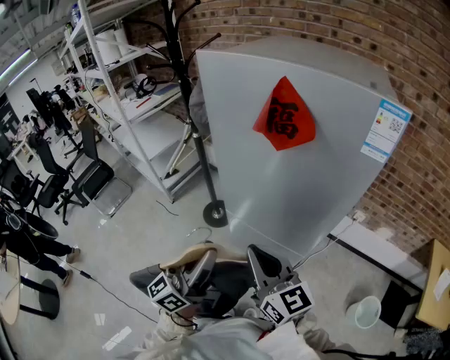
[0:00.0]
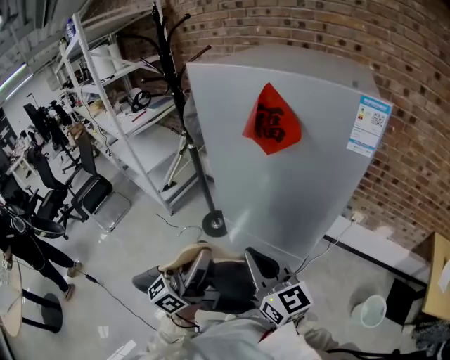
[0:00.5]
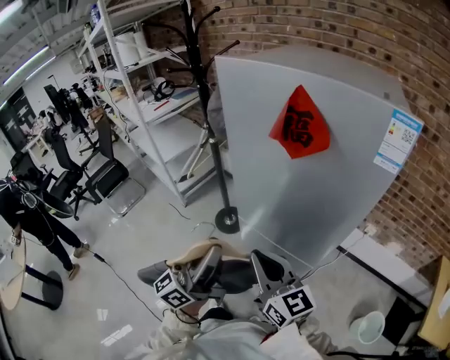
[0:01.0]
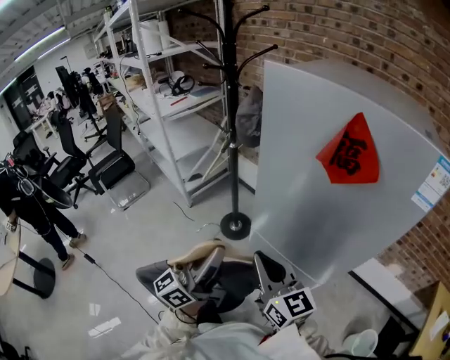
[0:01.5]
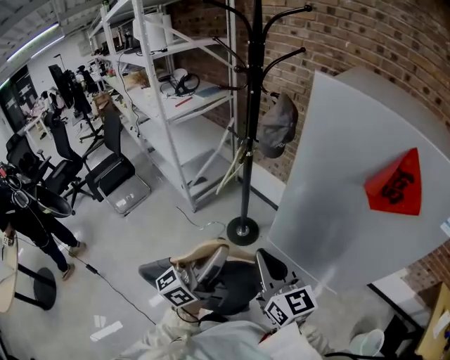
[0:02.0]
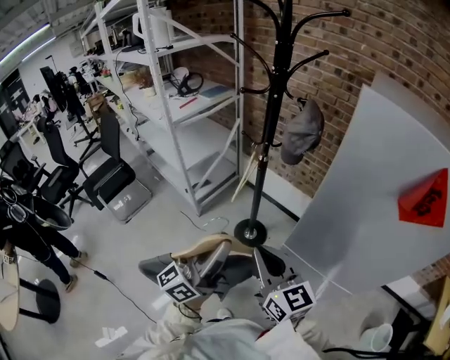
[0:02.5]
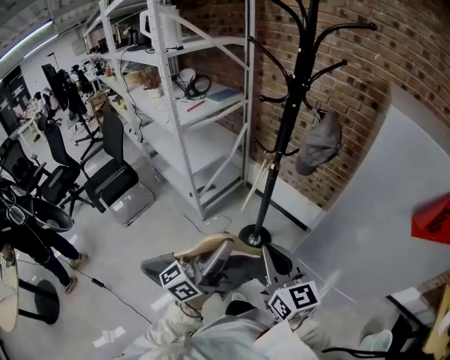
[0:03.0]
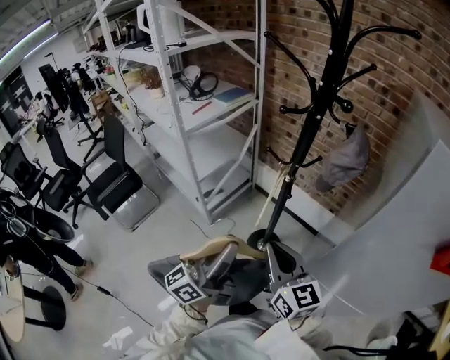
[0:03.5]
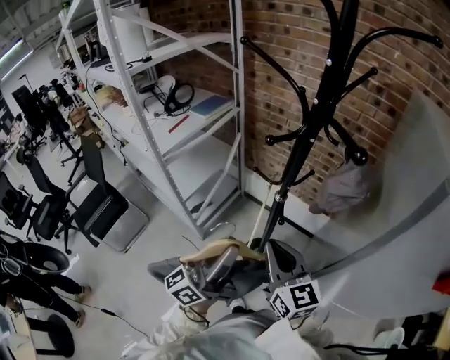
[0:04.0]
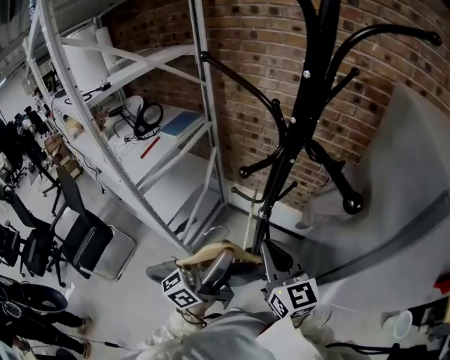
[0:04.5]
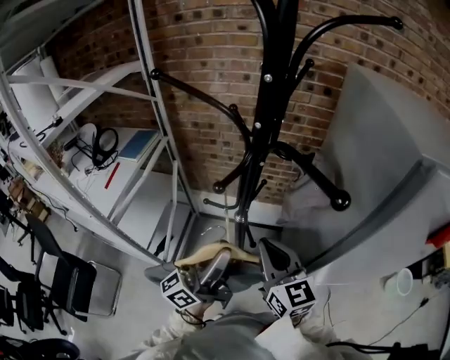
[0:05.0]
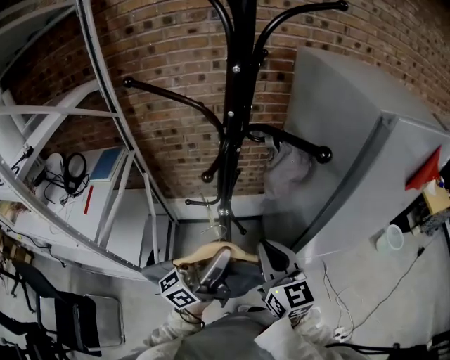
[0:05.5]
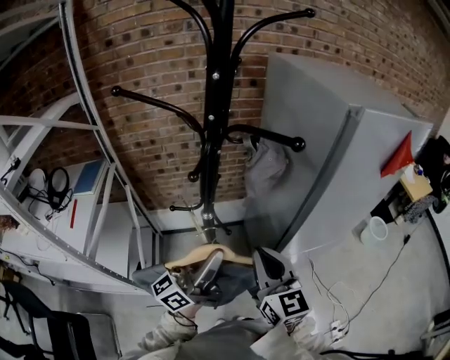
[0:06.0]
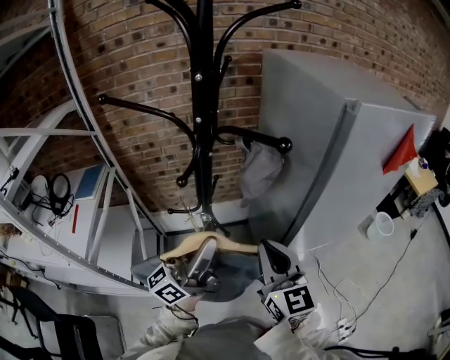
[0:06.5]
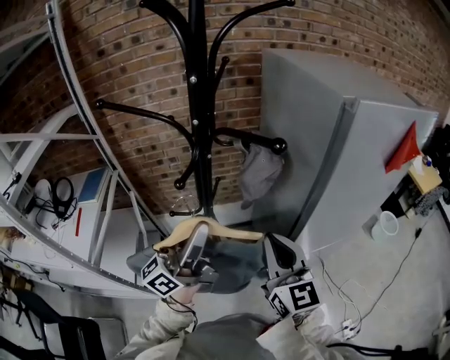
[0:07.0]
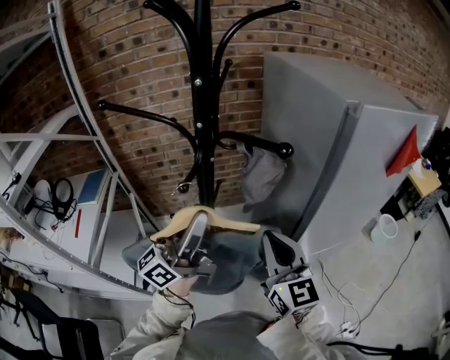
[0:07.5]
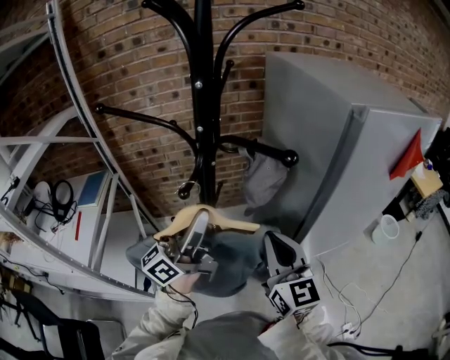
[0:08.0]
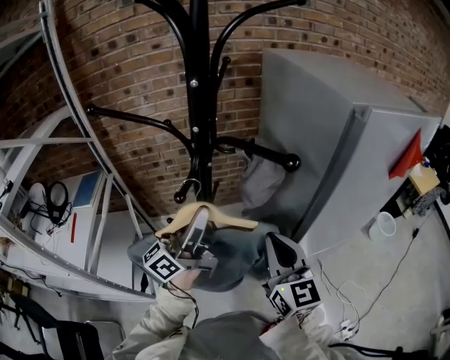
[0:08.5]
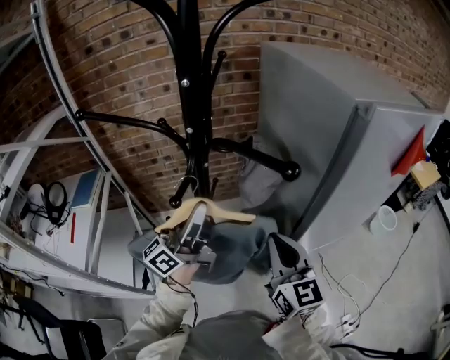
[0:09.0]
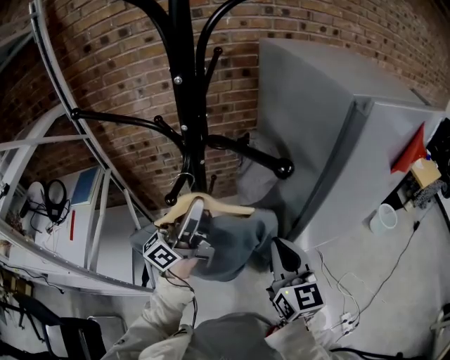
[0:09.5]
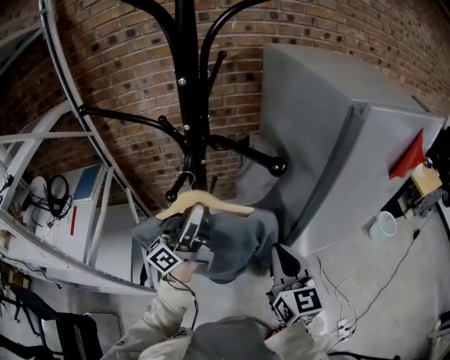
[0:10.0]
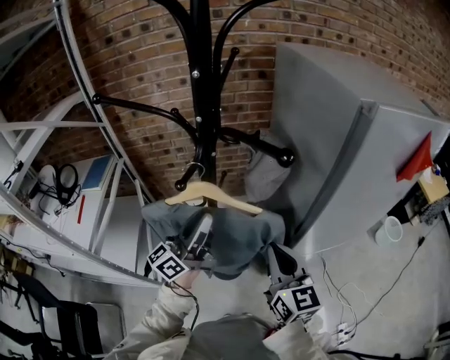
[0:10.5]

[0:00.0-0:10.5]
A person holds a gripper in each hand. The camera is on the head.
0:00.0 to 0:02.0: Both grippers travel together to the left and forward, roughly 25 cm.
0:02.0 to 0:04.0: The two grippers go roughly 40 cm forward and to the left.
0:04.0 to 0:06.5: The left gripper moves some 10 cm, and rotates roughly 40 degrees. The right gripper shifts by roughly 5 cm, and turns by approximately 50 degrees.
0:06.5 to 0:08.5: The left gripper goes roughly 10 cm forward.
0:08.5 to 0:10.5: The right gripper ends up about 5 cm from where it was. Meanwhile the left gripper moves downward, some 5 cm.

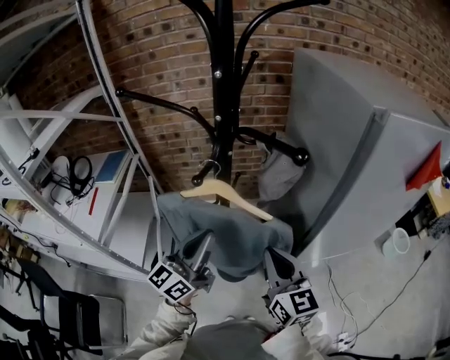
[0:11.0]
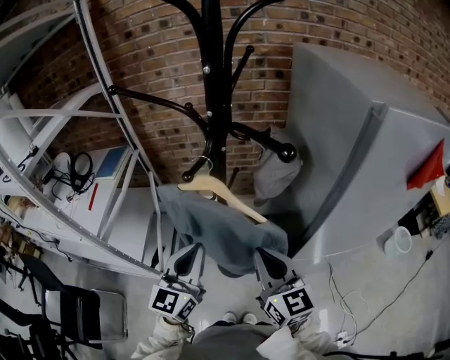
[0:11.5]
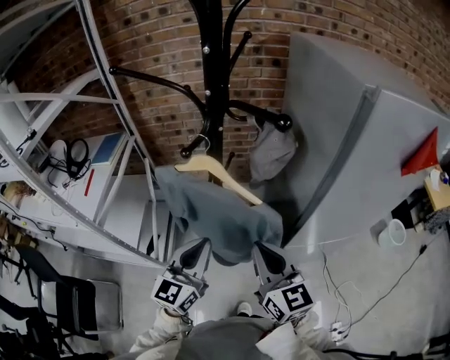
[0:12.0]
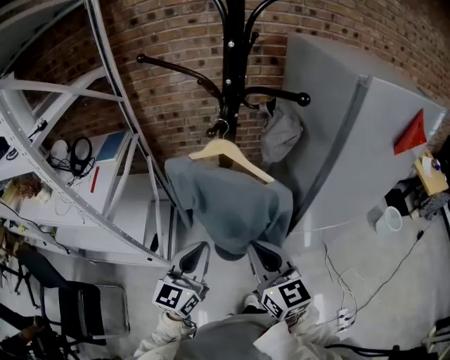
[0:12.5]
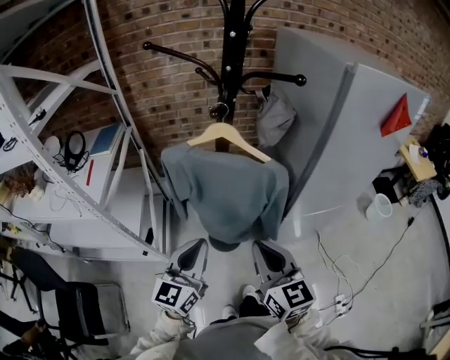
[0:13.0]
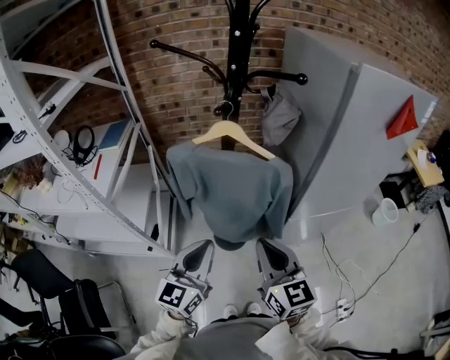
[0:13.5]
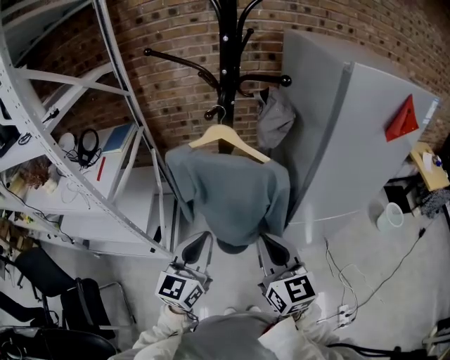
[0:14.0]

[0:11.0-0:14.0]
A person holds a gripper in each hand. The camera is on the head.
0:11.0 to 0:12.5: The left gripper shifts roughly 15 cm backward and downward, and turns by some 20 degrees. The right gripper shifts about 15 cm backward and to the left.
0:12.5 to 0:14.0: The left gripper shifts by roughly 5 cm. The right gripper shifts by roughly 5 cm.

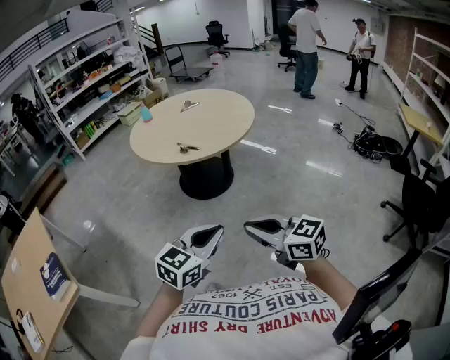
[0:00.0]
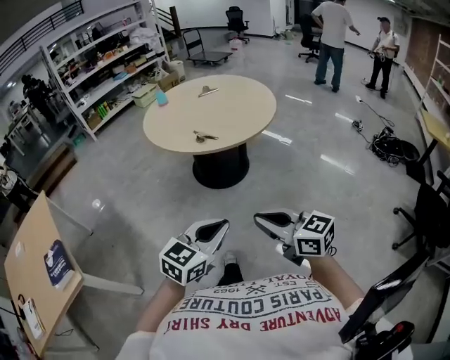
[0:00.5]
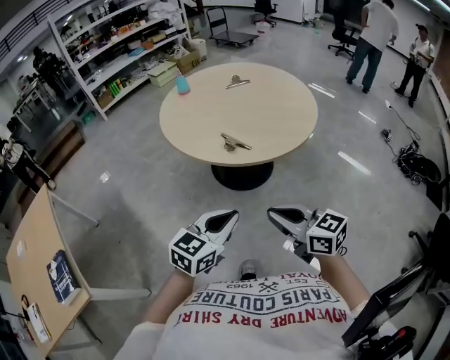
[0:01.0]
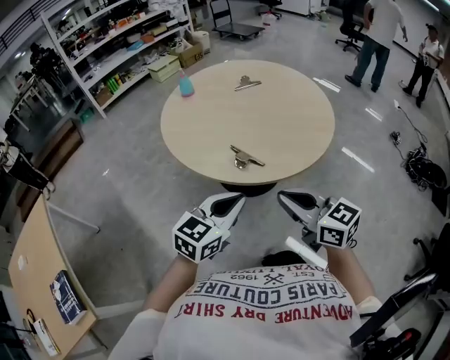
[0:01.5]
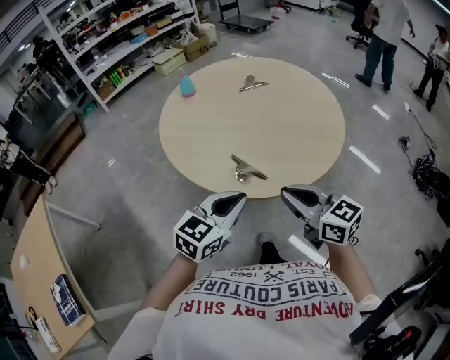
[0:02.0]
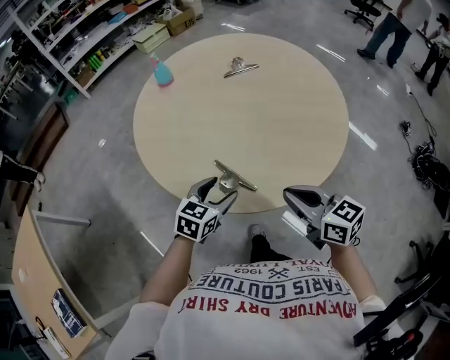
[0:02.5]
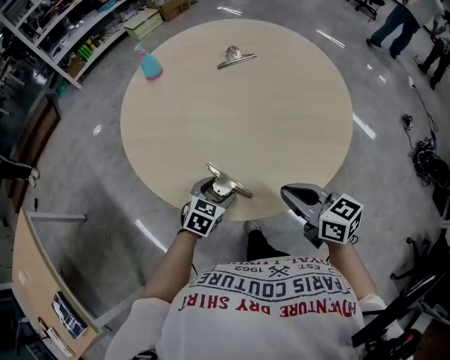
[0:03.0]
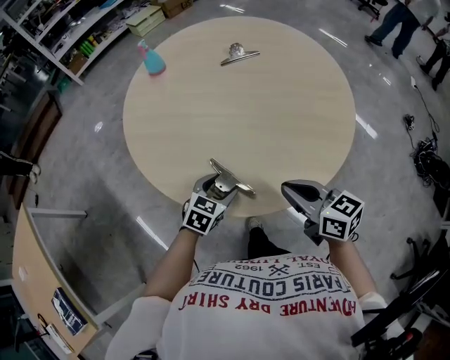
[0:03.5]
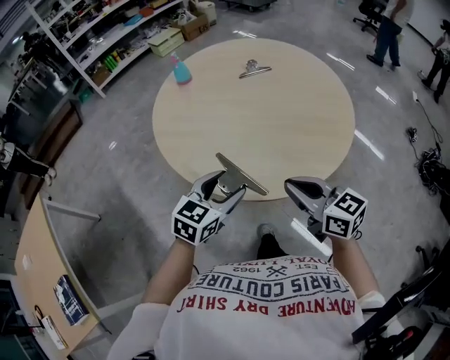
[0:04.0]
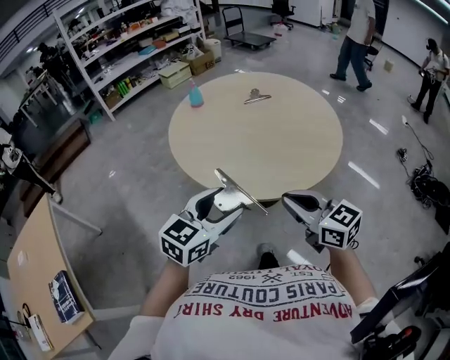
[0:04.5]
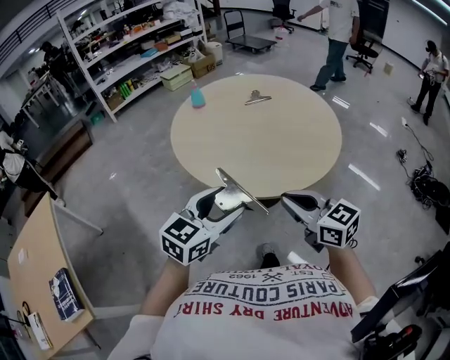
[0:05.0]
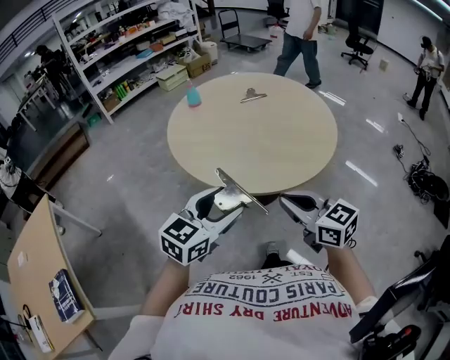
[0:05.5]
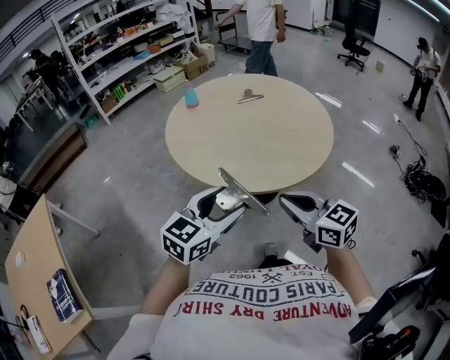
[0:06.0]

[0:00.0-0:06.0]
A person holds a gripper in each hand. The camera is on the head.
0:00.0 to 0:02.0: Both grippers are carried forward, about 50 cm.
0:02.0 to 0:04.0: Both grippers move forward, roughly 10 cm. The left gripper goes downward and returns, roughly 25 cm each way, and opens.
0:04.0 to 0:06.0: The right gripper heads backward, covering roughly 15 cm, while the left gripper goes approximately 20 cm backward and upward.

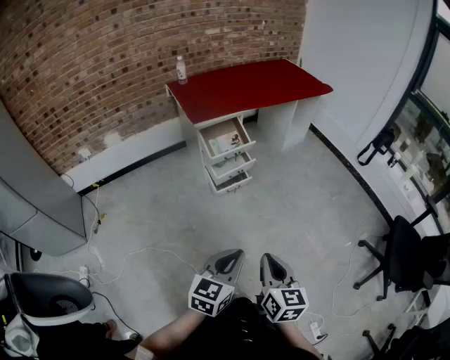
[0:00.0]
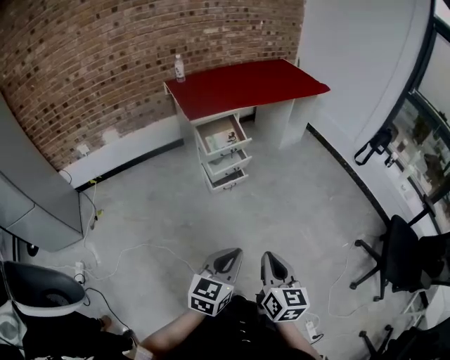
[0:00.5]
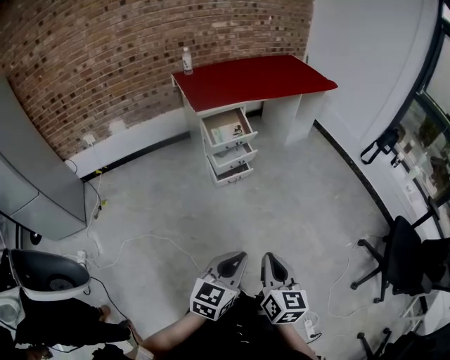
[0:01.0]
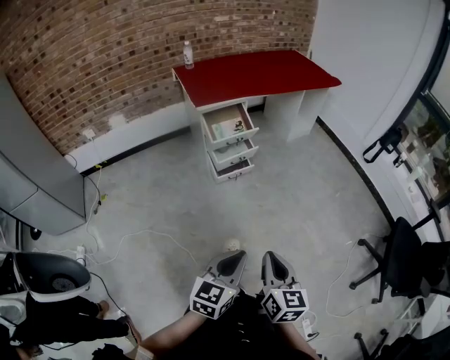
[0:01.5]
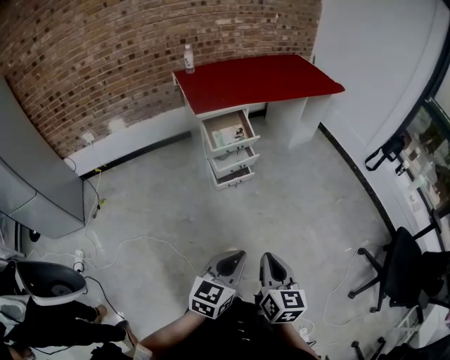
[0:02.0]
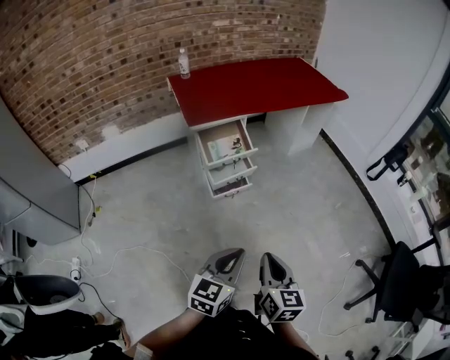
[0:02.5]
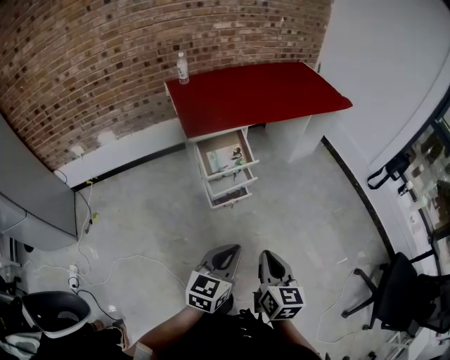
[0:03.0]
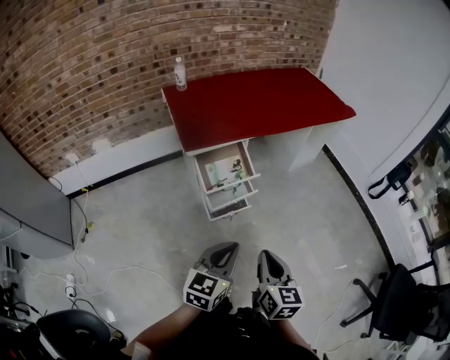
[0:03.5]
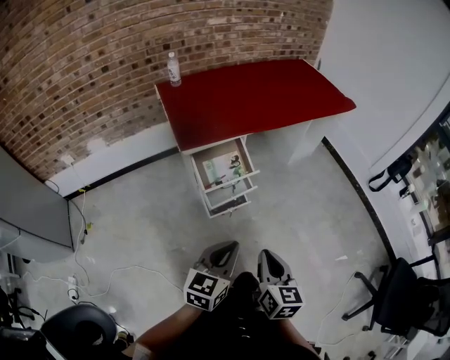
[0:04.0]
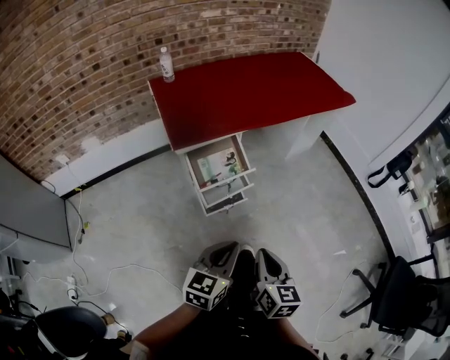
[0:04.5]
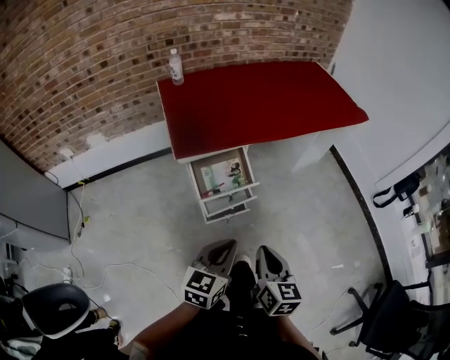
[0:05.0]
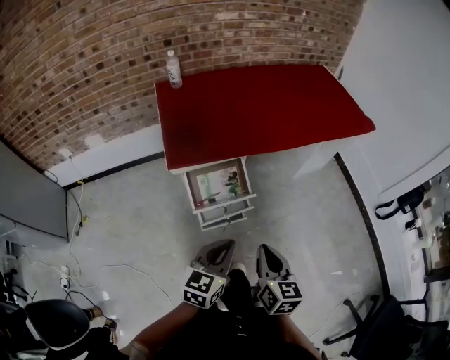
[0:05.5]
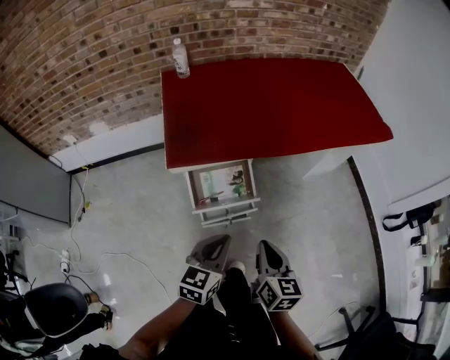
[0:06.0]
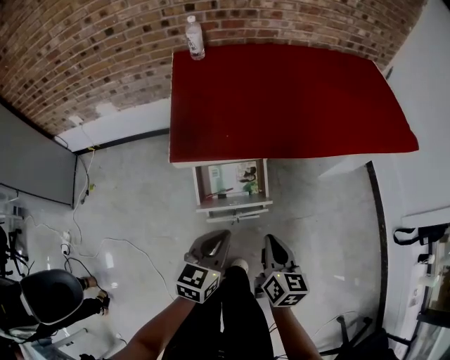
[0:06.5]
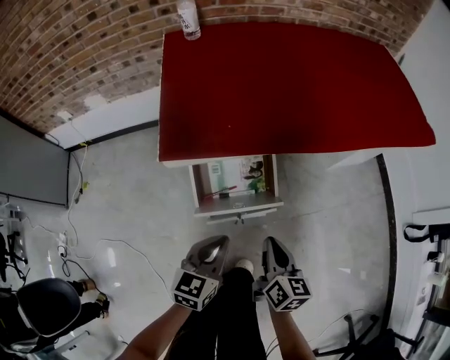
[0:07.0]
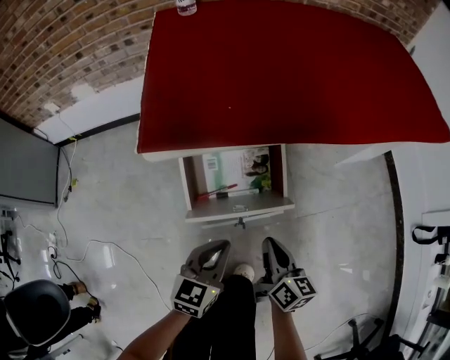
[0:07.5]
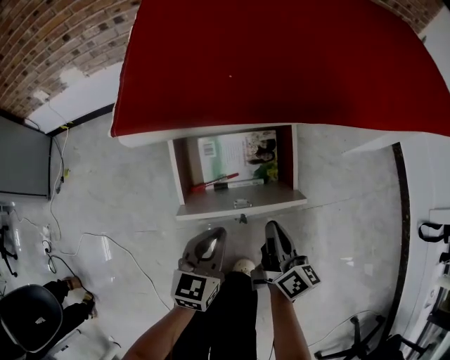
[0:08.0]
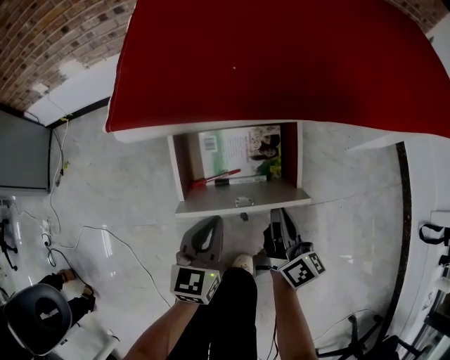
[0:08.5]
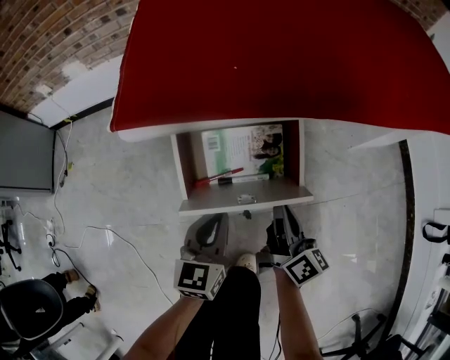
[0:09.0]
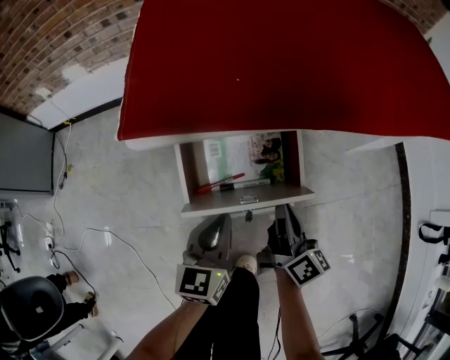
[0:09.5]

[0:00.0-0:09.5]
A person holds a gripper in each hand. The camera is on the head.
0:00.0 to 0:02.0: The left gripper moves approximately 5 cm.
0:02.0 to 0:04.0: The two grippers go about 30 cm forward.
0:04.0 to 0:05.5: The grippers both shift forward by some 15 cm.
0:05.5 to 0:07.5: The two grippers go some 30 cm downward and forward. The right gripper turns by approximately 20 degrees.
0:07.5 to 0:09.5: Both grippers move forward, some 10 cm.
